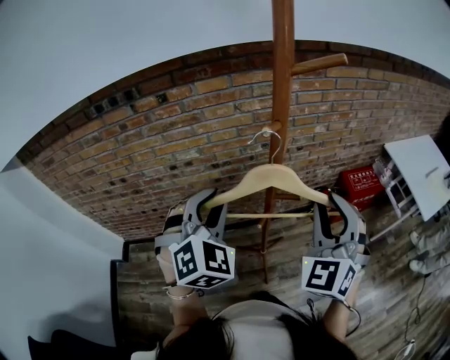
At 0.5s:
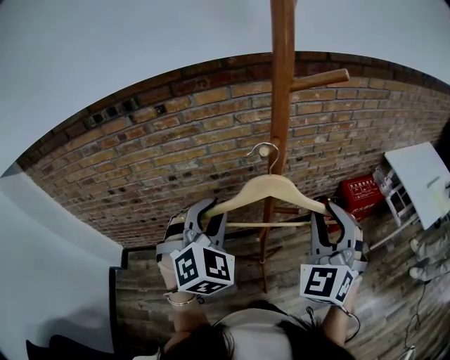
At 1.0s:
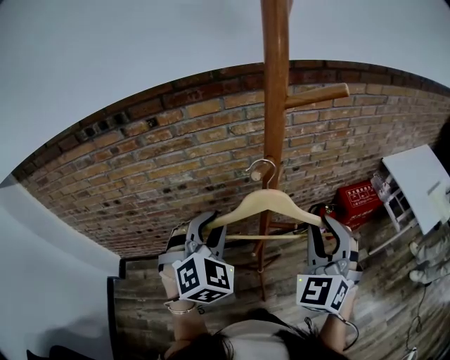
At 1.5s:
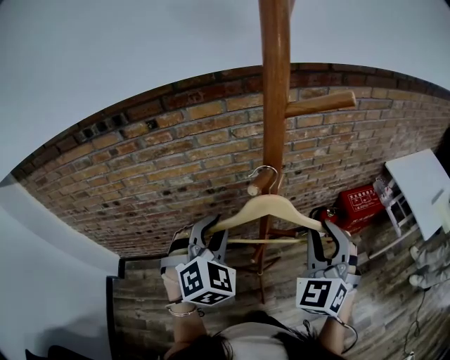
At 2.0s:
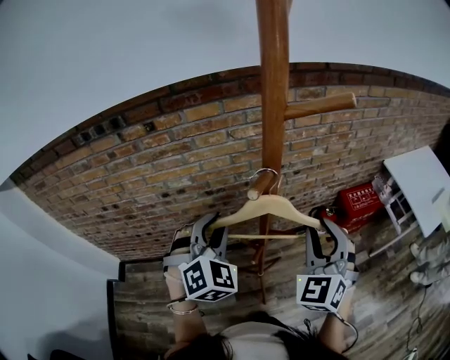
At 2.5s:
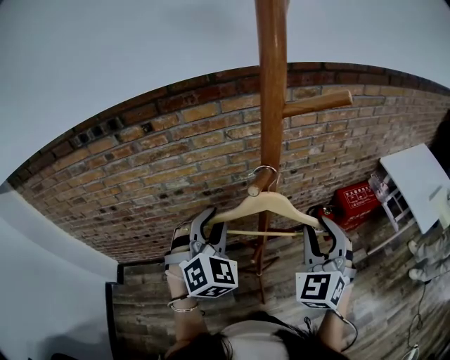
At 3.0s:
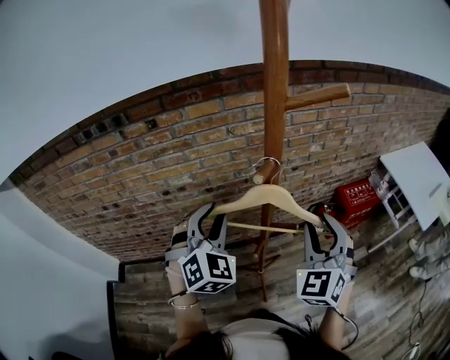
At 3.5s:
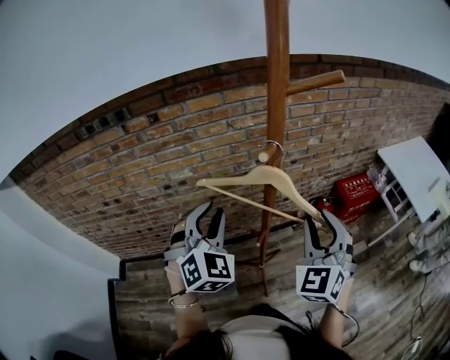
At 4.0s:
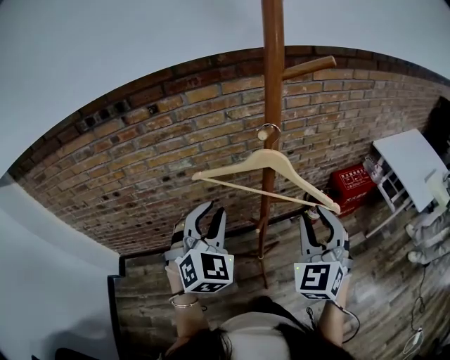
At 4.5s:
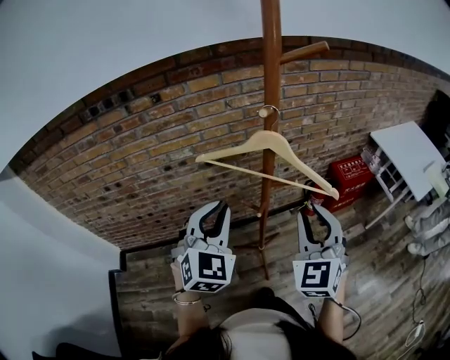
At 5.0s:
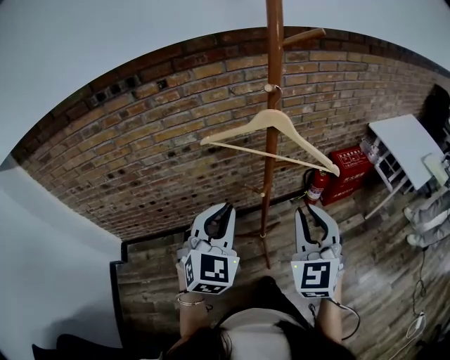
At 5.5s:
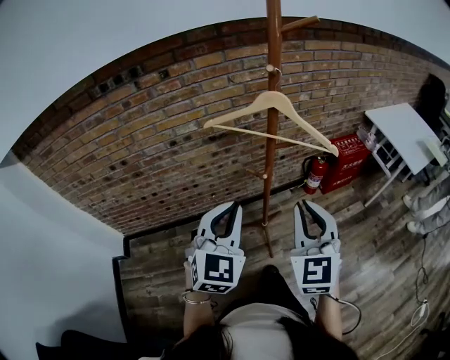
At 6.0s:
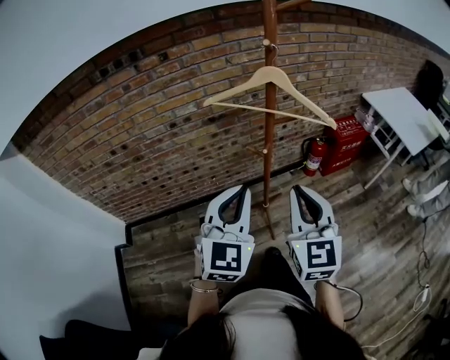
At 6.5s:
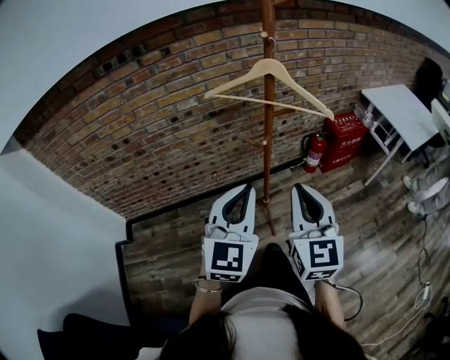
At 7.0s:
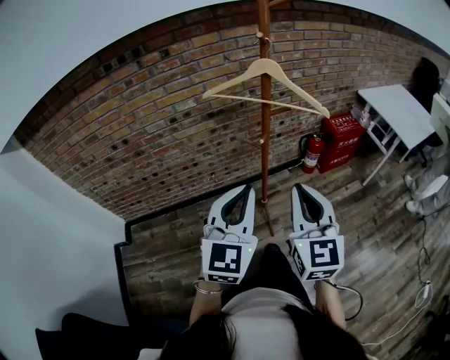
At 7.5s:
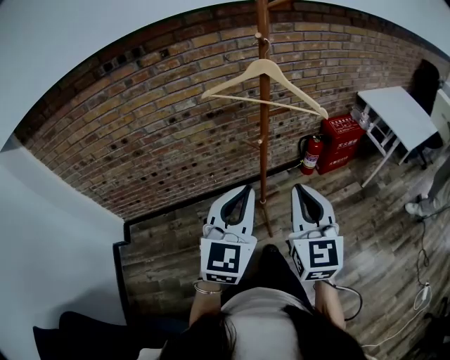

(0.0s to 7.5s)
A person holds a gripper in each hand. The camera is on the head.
0.0s - 2.0s: Both grippers travel together forward, approximately 5 cm.
2.0s - 4.0s: Both grippers travel together backward, some 5 cm.
4.0s - 5.5s: Both grippers move backward, about 15 cm. The right gripper closes. The left gripper changes its angle by approximately 20 degrees, and closes up.
5.5s - 7.5s: Both grippers move backward, approximately 10 cm.

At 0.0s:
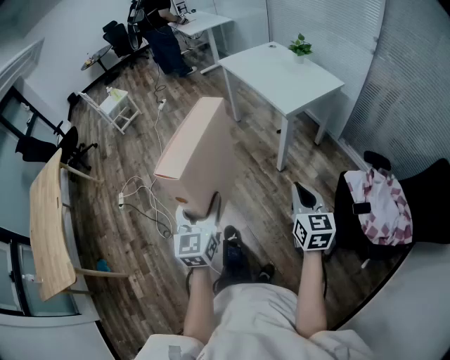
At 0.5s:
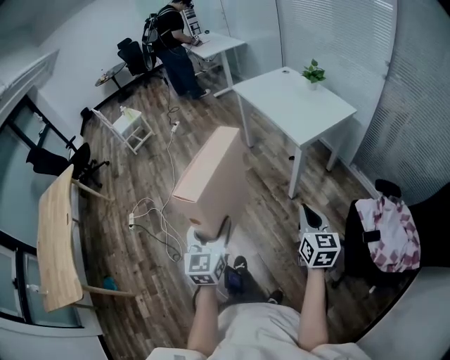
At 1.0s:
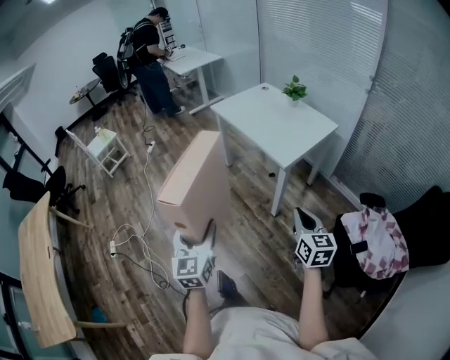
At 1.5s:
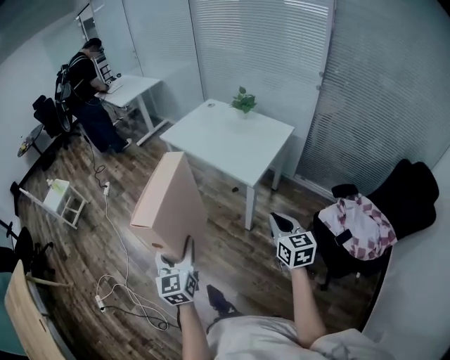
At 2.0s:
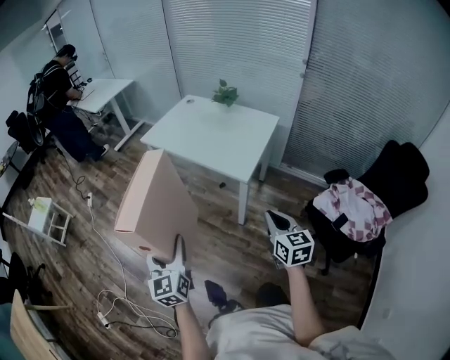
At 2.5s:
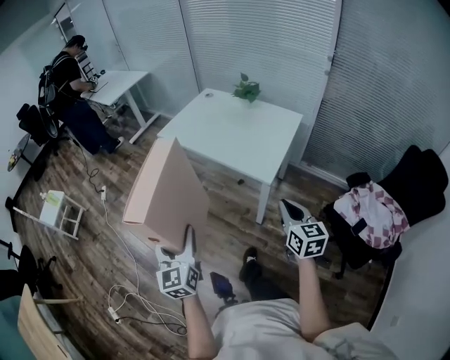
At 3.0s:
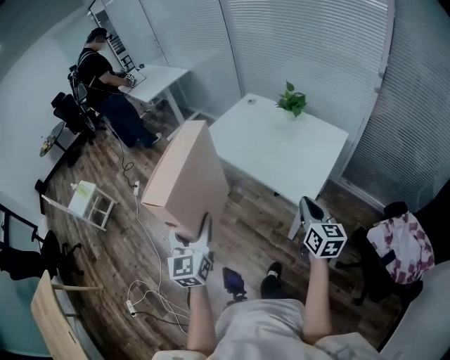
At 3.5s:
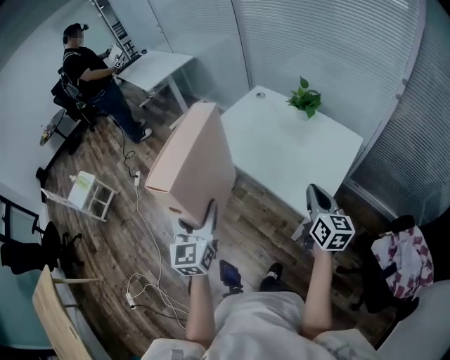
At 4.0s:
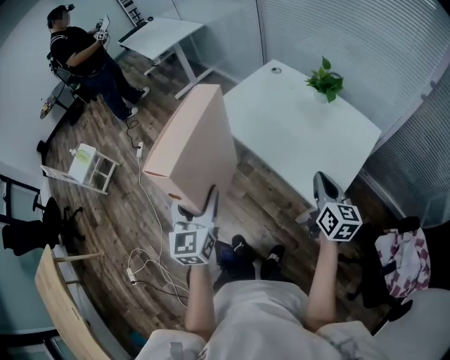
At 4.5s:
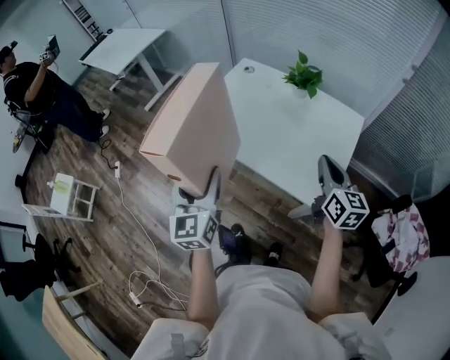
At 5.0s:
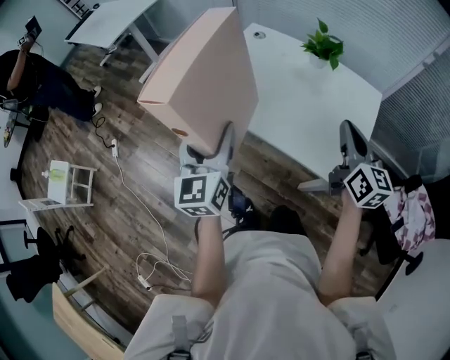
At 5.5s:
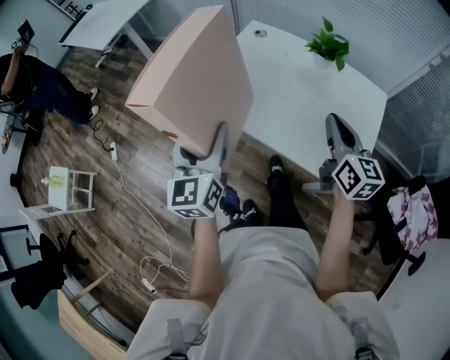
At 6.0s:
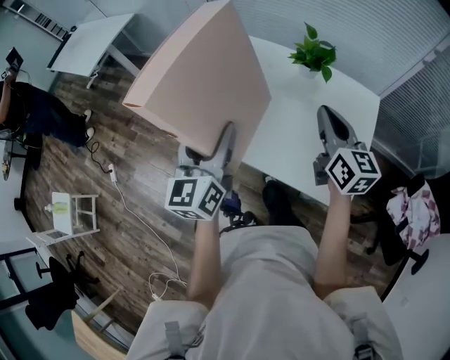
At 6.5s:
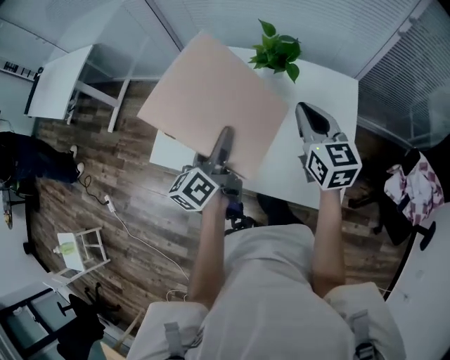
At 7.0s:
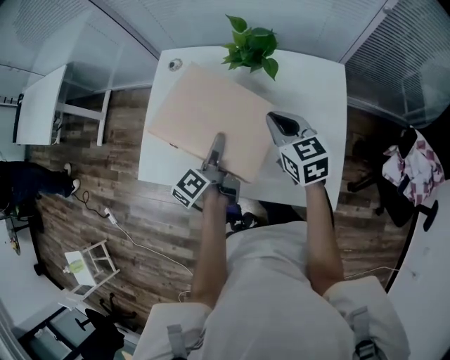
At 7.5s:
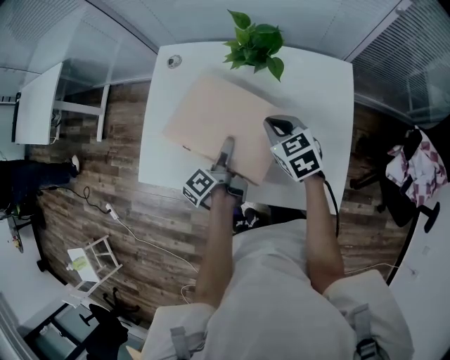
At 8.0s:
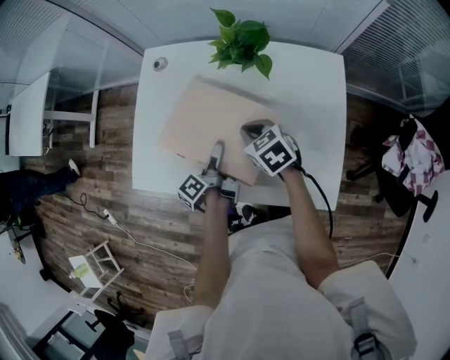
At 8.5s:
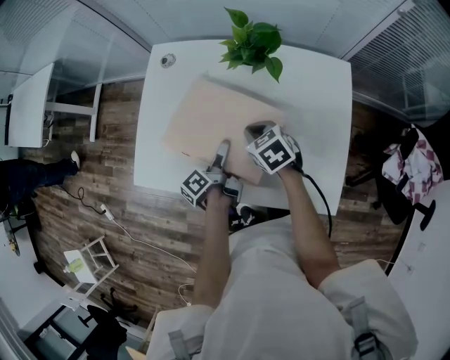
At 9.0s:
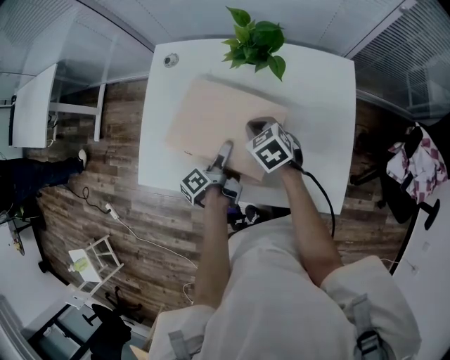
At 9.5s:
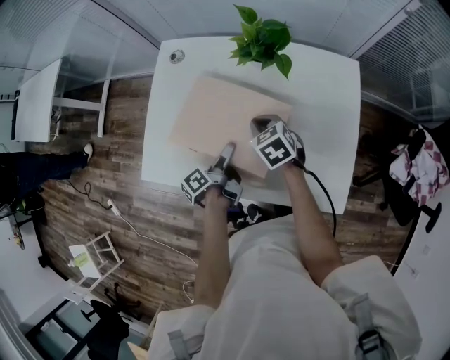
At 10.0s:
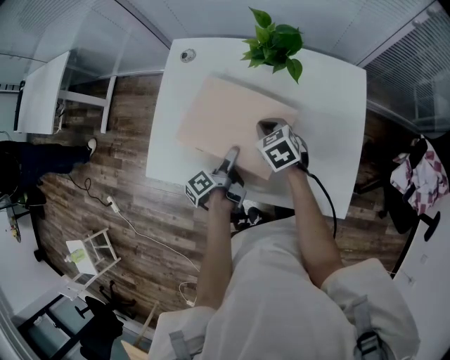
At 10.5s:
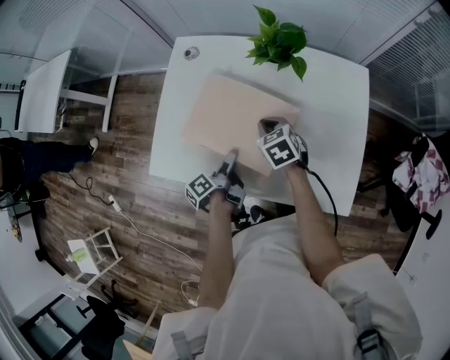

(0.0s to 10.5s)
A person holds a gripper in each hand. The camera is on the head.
0.0s - 2.0s: The two grippers go about 30 cm forward. The right gripper swivels roughly 20 degrees.
2.0s - 4.0s: The grippers both shift forward by about 40 cm.
4.0s - 6.5s: The left gripper shifts by about 40 cm, and turns by approximately 60 degrees. The right gripper changes place by about 30 cm, and rotates approximately 20 degrees.
6.5s - 8.5s: Both grippers travel together downward, approximately 20 cm. The left gripper turns by approximately 40 degrees, while the right gripper tilts its fingers approximately 40 degrees downward.
8.5s - 10.5s: The left gripper heads to the left, covering roughly 5 cm.

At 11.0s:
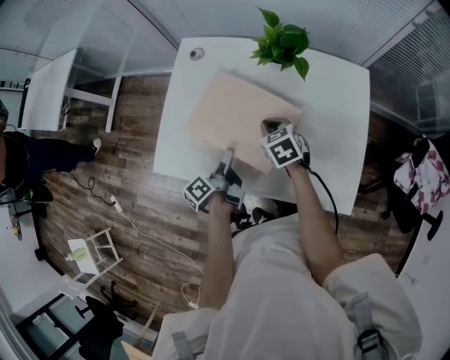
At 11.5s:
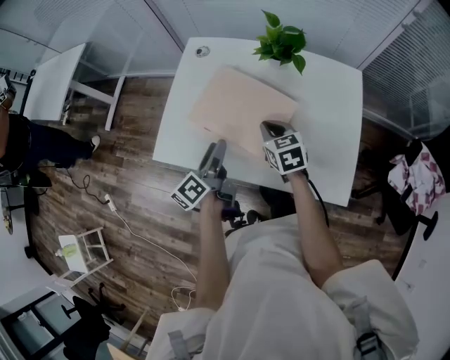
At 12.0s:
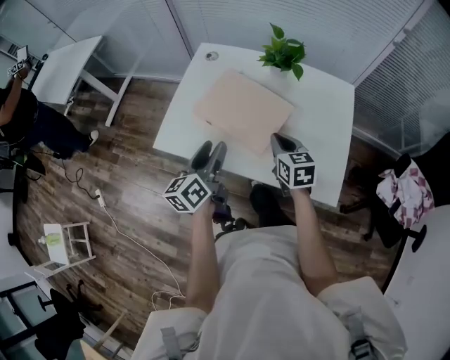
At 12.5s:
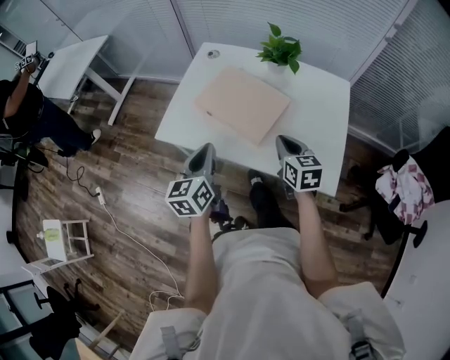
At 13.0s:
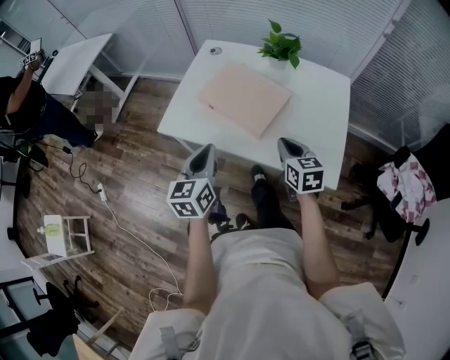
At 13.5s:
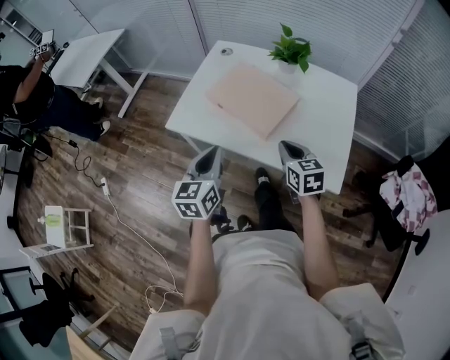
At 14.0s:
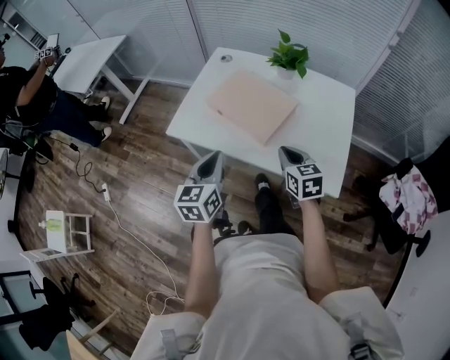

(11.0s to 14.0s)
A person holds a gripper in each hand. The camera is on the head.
11.0s - 12.5s: The left gripper shifts roughly 20 cm upward and backward, rotates around the line of its fingers by roughly 60 degrees, clockwise from behind, and closes up; the right gripper heads backward and upward, covering some 20 cm, and rotates about 30 degrees.
12.5s - 14.0s: The grippers both shift backward by about 5 cm.

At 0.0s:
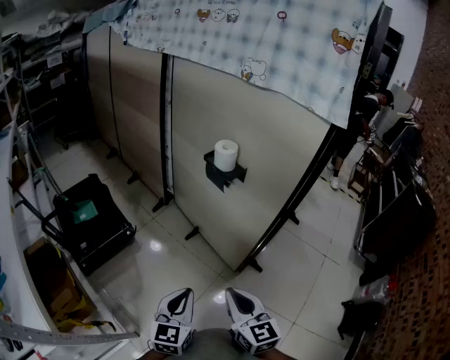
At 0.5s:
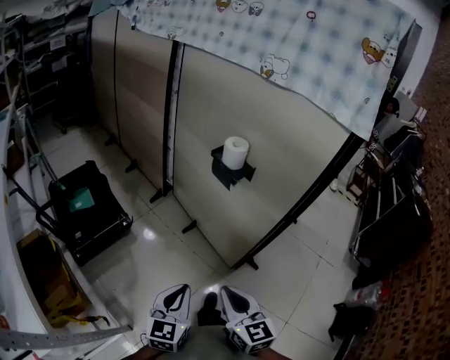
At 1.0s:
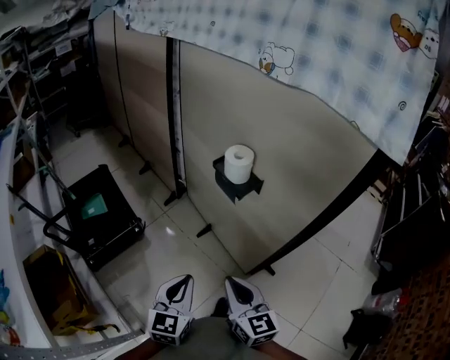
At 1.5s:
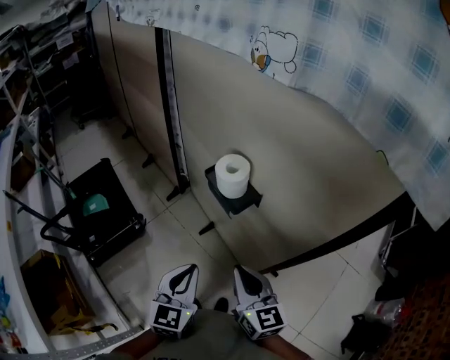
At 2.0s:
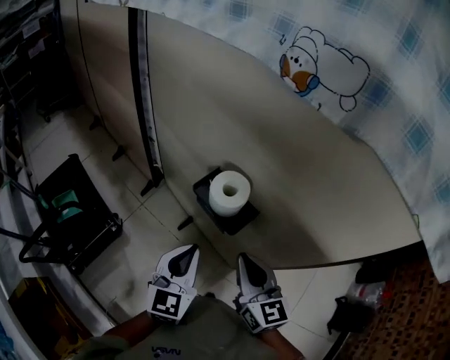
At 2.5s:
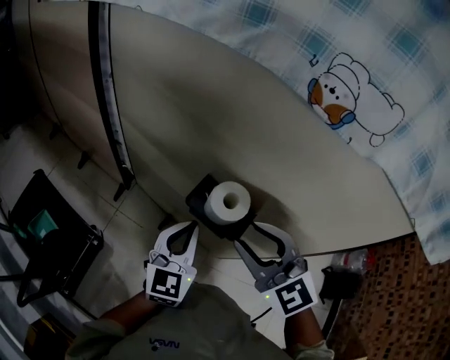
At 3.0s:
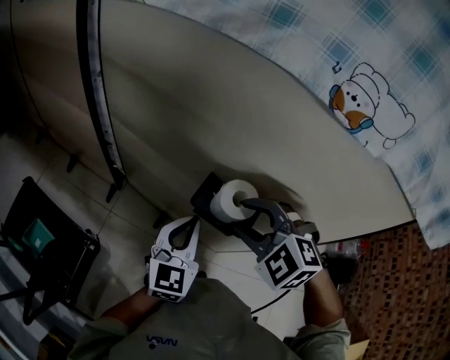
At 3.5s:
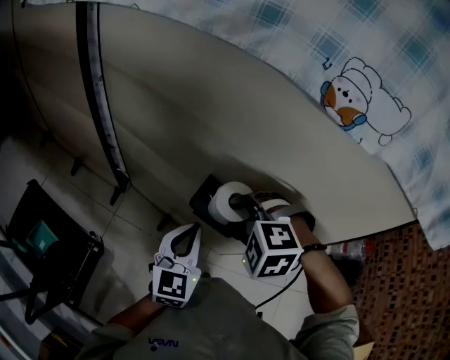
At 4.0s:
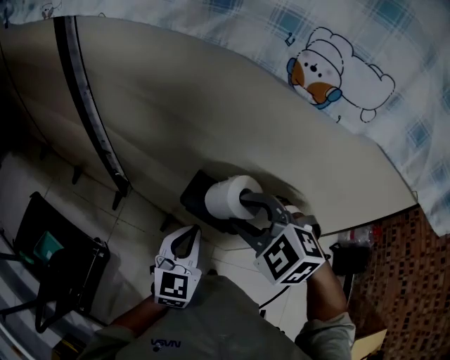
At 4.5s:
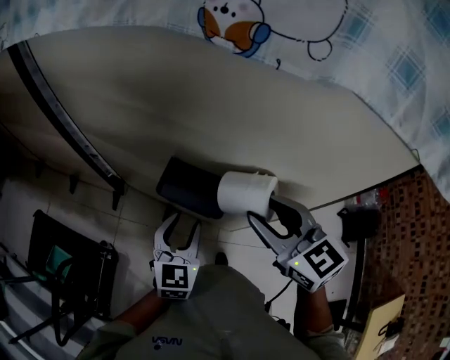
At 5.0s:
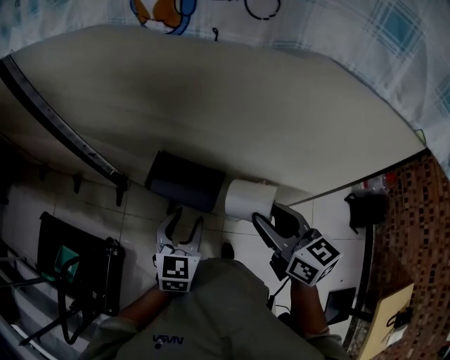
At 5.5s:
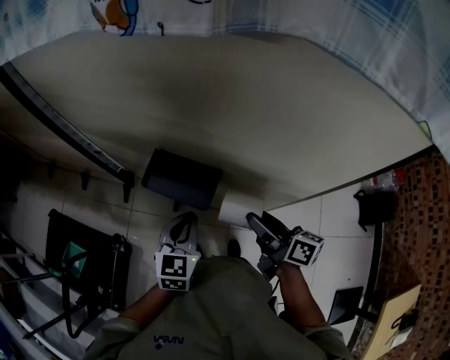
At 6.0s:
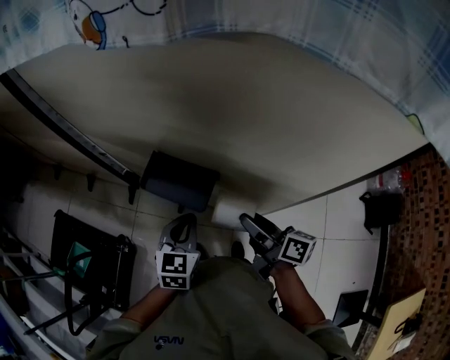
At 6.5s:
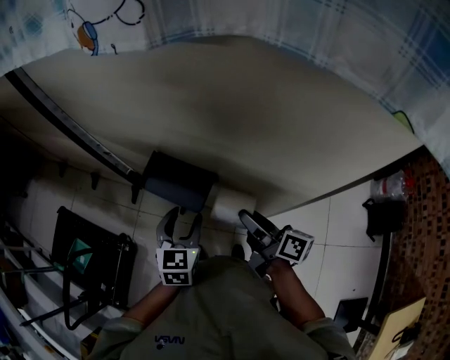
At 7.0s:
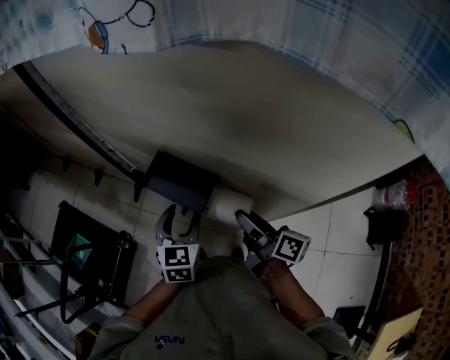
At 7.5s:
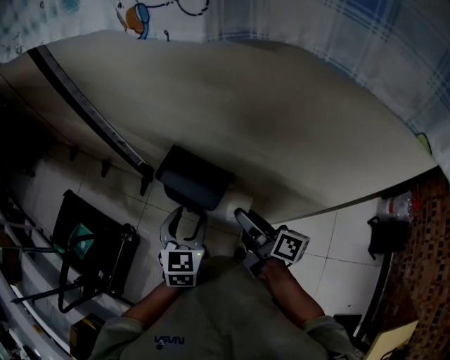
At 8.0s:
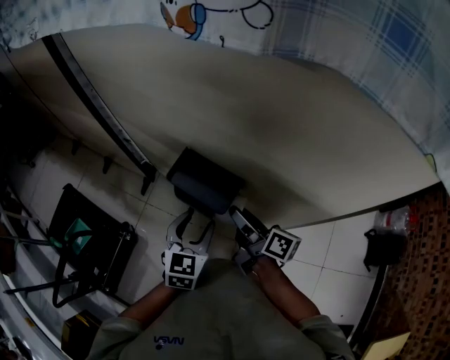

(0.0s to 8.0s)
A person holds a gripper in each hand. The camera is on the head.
0.0s - 2.0s: Both grippers travel together forward, roughly 40 cm.
2.0s - 4.0s: The left gripper goes roughly 10 cm forward, while the right gripper is displaced forward, to the left and upward by some 15 cm, tilts its fingers some 40 degrees downward, and opens.
4.0s - 6.0s: The right gripper travels to the right and downward by approximately 20 cm, and rolls clockwise, seen from behind, by about 100 degrees. The left gripper shifts some 10 cm downward and to the right, and opens, then closes again.
6.0s - 8.0s: The left gripper opens its fingers; the right gripper is displaced to the left and forward by some 10 cm.
